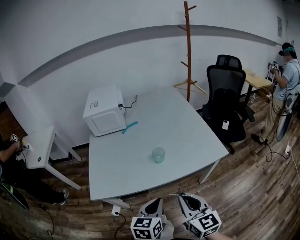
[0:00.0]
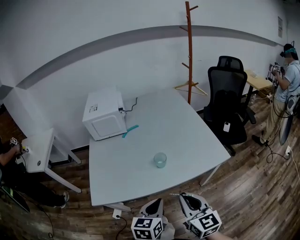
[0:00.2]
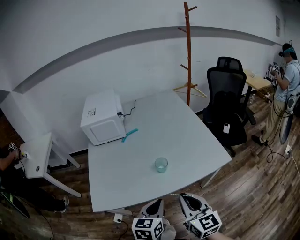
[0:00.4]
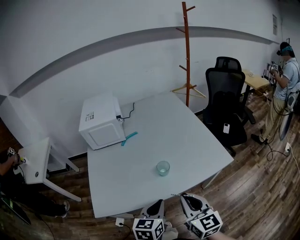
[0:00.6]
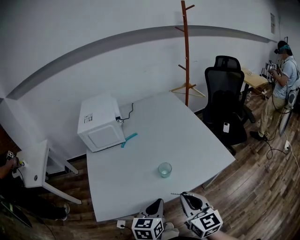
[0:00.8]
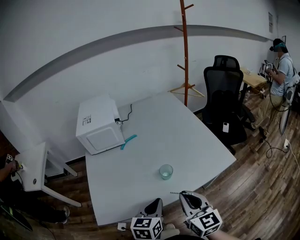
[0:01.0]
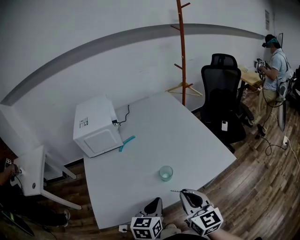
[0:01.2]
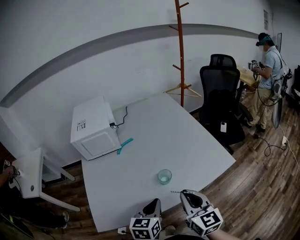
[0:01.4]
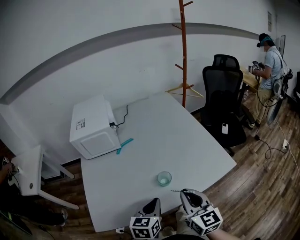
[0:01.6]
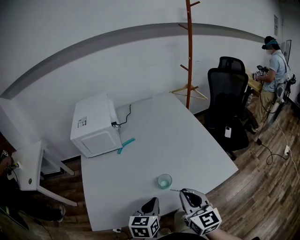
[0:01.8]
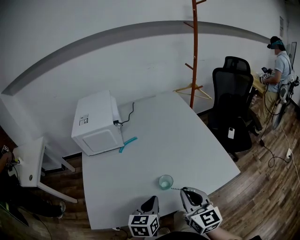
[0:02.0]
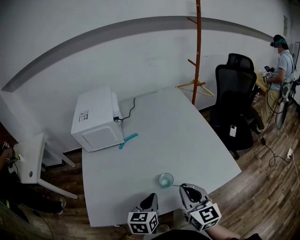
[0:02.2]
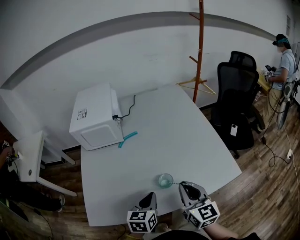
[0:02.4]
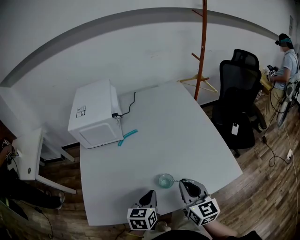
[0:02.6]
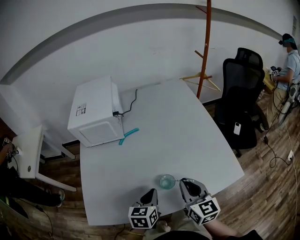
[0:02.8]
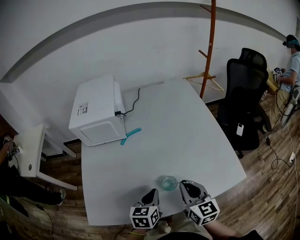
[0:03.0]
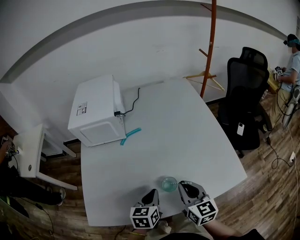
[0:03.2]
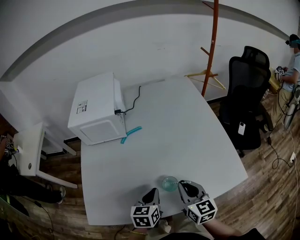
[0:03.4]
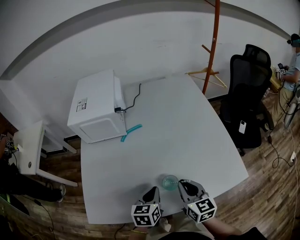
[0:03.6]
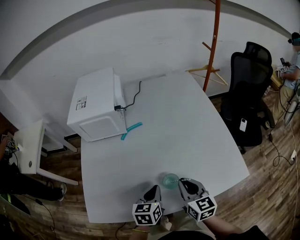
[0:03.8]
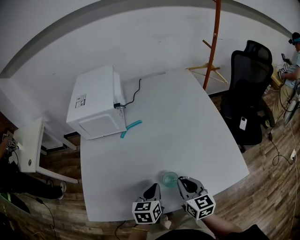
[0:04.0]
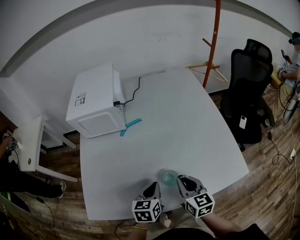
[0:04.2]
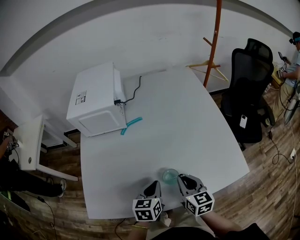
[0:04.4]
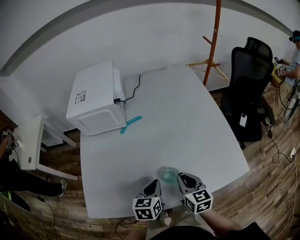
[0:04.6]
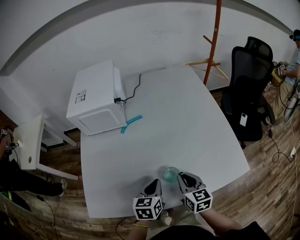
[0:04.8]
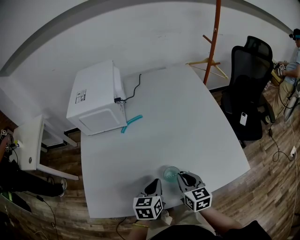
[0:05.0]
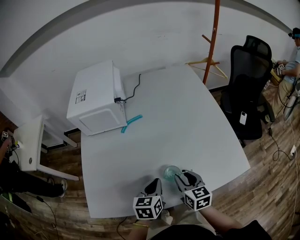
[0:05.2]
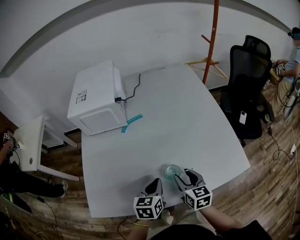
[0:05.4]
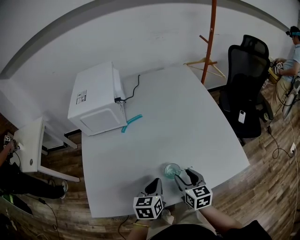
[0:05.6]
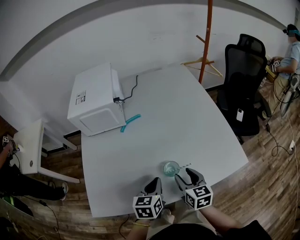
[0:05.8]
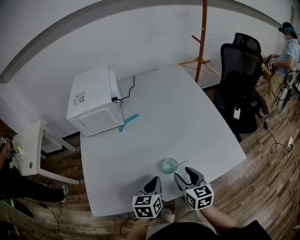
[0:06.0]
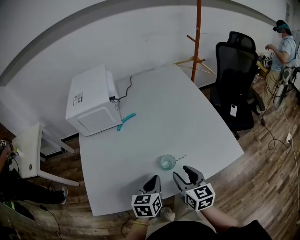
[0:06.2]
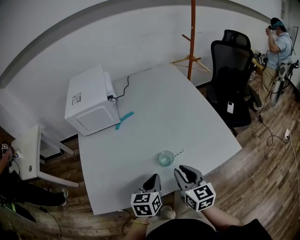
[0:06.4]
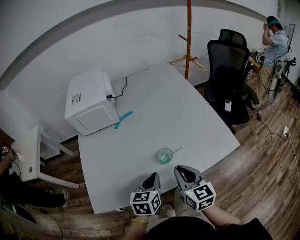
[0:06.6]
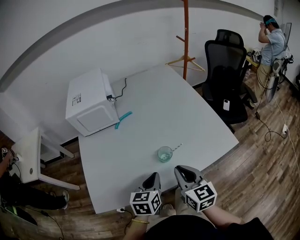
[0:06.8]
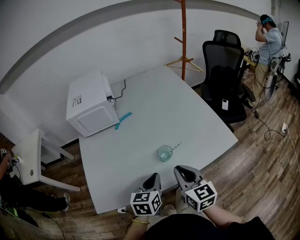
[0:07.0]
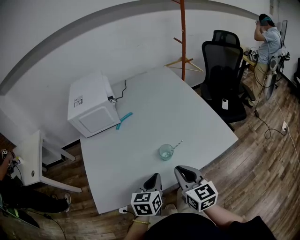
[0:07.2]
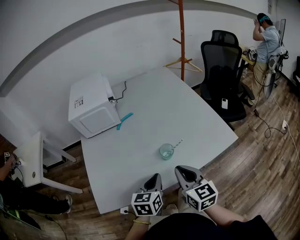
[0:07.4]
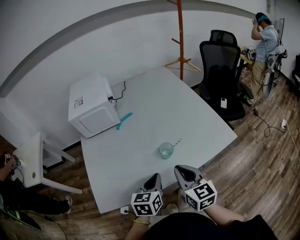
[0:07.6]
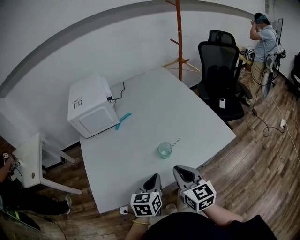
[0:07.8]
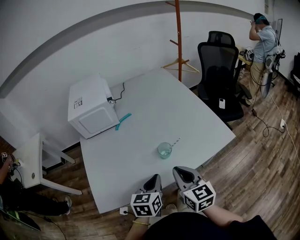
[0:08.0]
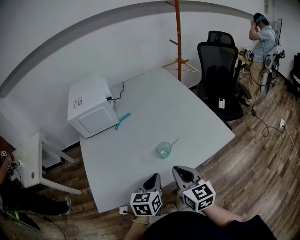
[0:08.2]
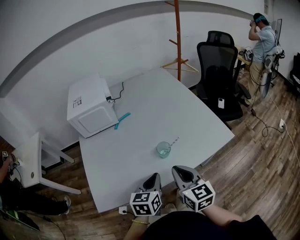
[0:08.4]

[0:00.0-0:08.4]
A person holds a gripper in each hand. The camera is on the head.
0:00.0 to 0:01.4: The left gripper shifts about 15 cm forward and to the left; the right gripper shifts some 15 cm forward.
0:01.4 to 0:02.8: The left gripper heads forward and downward, covering approximately 10 cm; the right gripper moves forward, some 15 cm.
0:02.8 to 0:04.2: The right gripper shifts about 10 cm downward.
0:04.2 to 0:05.6: The right gripper opens its fingers.
0:05.6 to 0:07.0: The left gripper shifts about 10 cm backward. The right gripper moves upward and backward, approximately 15 cm, and closes its fingers.
0:07.0 to 0:08.4: There are only small adjustments of the grippers.

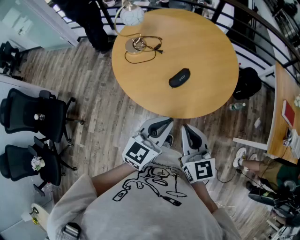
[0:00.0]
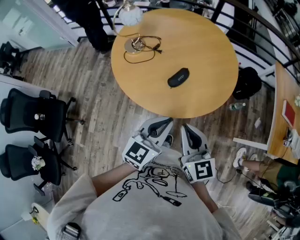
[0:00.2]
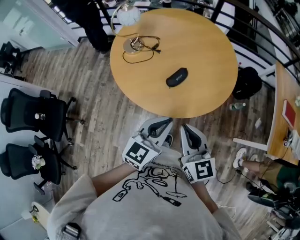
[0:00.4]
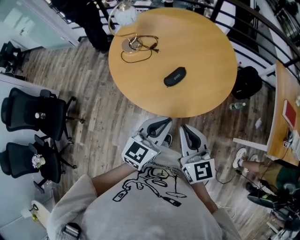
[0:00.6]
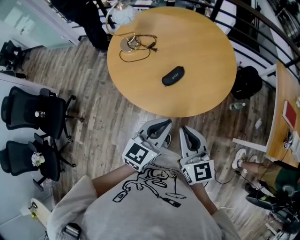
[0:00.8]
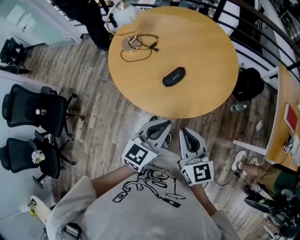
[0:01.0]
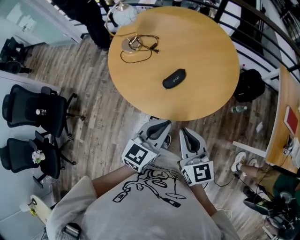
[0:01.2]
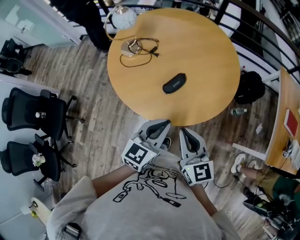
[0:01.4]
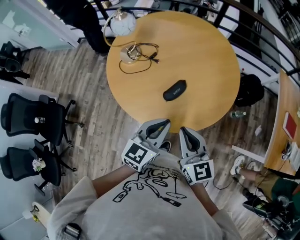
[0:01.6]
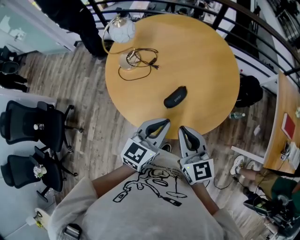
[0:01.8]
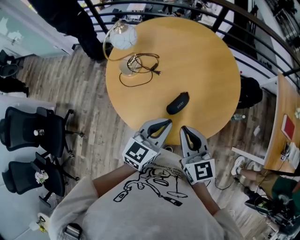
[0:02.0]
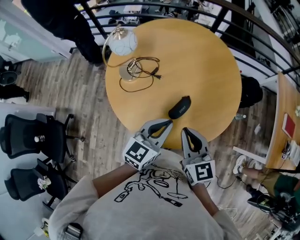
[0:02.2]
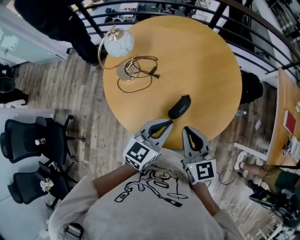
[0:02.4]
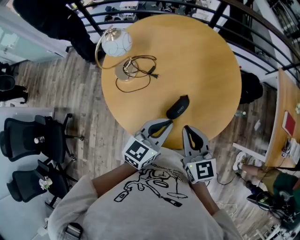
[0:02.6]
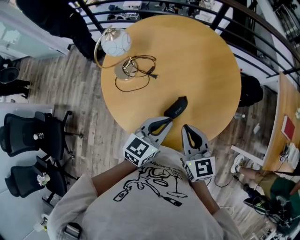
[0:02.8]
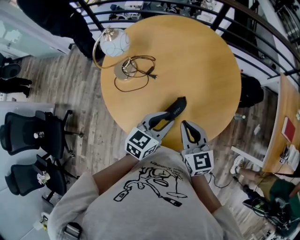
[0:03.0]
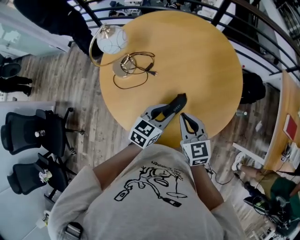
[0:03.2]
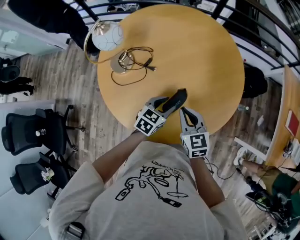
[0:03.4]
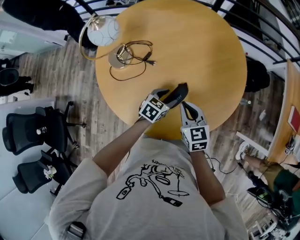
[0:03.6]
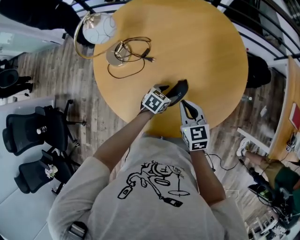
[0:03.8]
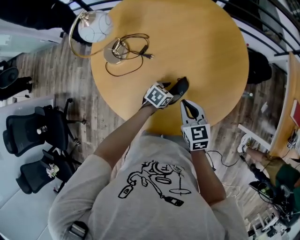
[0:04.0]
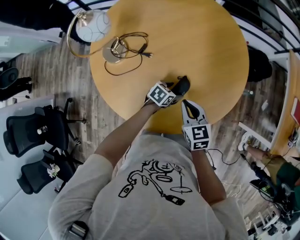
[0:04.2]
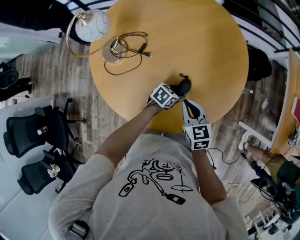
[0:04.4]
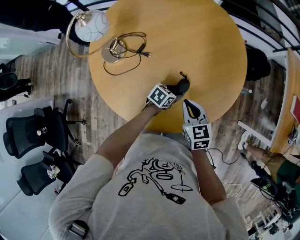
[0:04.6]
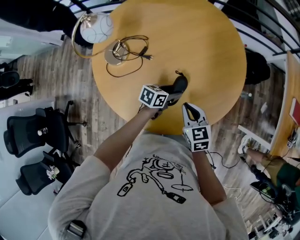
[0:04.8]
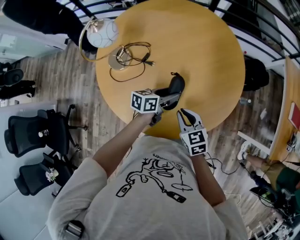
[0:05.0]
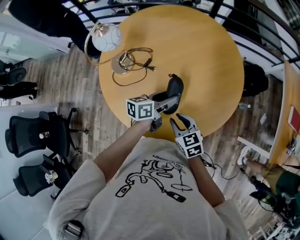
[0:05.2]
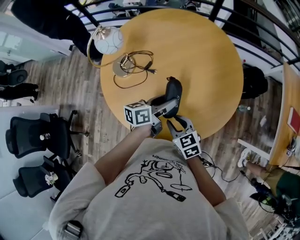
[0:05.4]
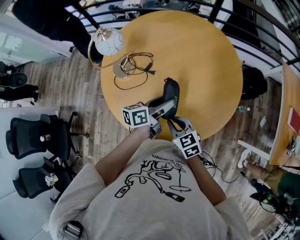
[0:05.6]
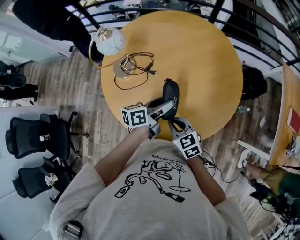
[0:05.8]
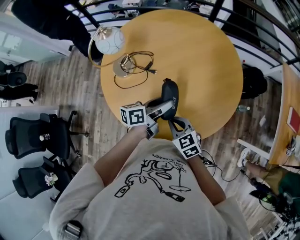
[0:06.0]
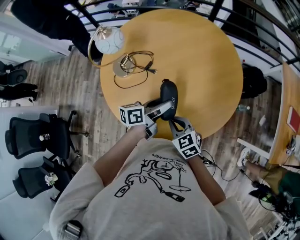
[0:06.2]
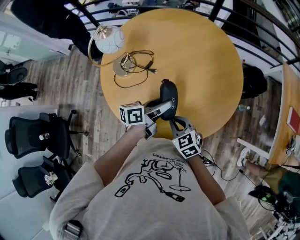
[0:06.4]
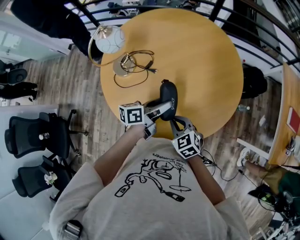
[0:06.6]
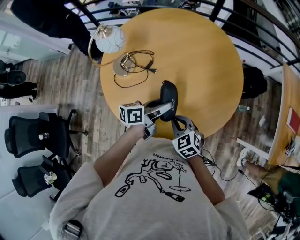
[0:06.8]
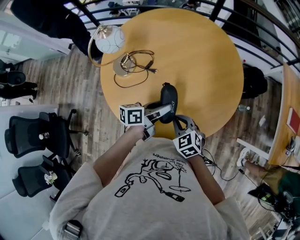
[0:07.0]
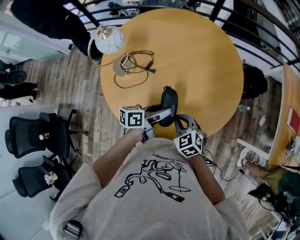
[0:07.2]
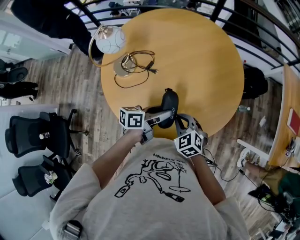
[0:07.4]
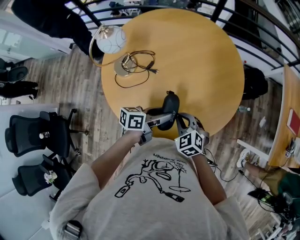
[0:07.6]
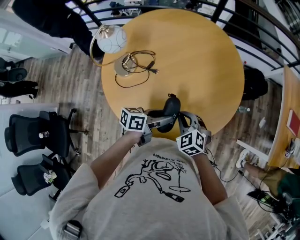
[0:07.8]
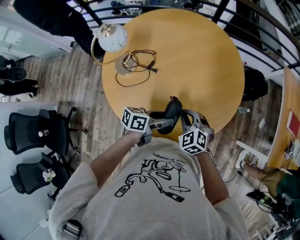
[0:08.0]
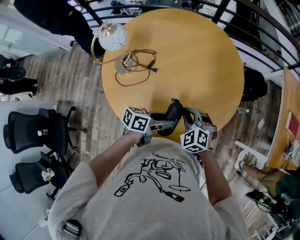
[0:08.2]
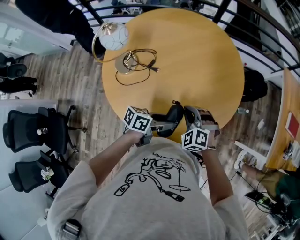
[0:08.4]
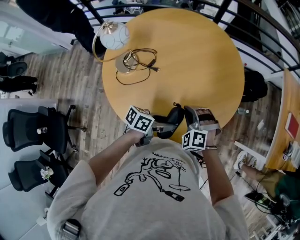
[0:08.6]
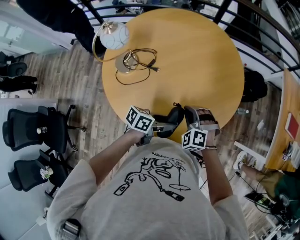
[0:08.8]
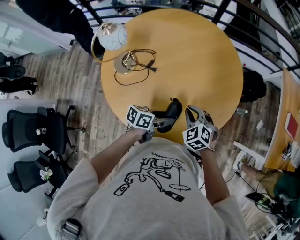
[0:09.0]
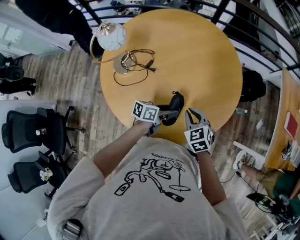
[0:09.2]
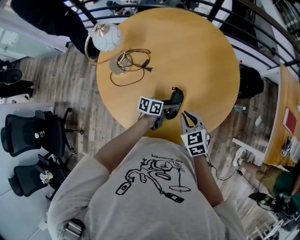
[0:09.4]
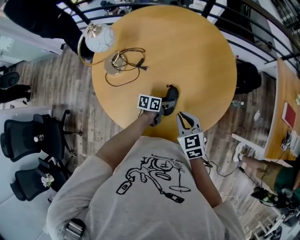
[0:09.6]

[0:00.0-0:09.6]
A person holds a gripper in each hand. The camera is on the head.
0:00.0 to 0:01.6: Both grippers move forward, about 10 cm.
0:01.6 to 0:03.2: Both grippers travel together forward and downward, approximately 20 cm. The left gripper opens up.
0:03.2 to 0:04.8: The left gripper moves downward, approximately 15 cm, and swivels about 30 degrees. Meanwhile the right gripper shifts some 10 cm downward.
0:04.8 to 0:06.4: The right gripper shifts approximately 5 cm to the left. Meanwhile the left gripper shifts roughly 15 cm upward and to the left, and swivels about 30 degrees.
0:06.4 to 0:08.0: The right gripper moves about 5 cm, and swivels approximately 30 degrees; the left gripper shifts some 5 cm backward.
0:08.0 to 0:09.6: The right gripper turns by about 30 degrees. The left gripper goes roughly 20 cm downward and forward.

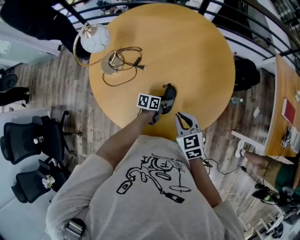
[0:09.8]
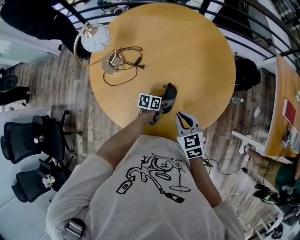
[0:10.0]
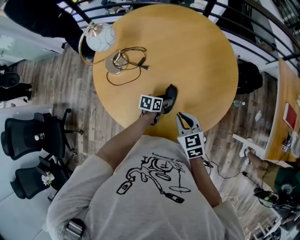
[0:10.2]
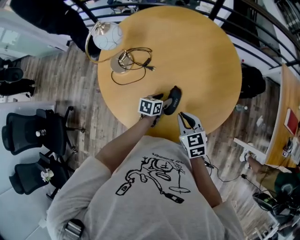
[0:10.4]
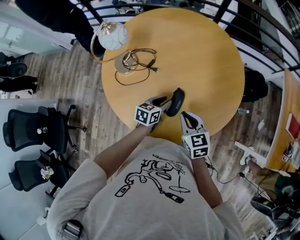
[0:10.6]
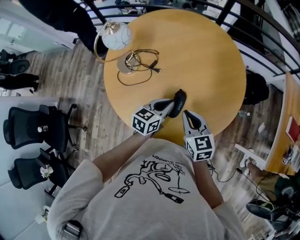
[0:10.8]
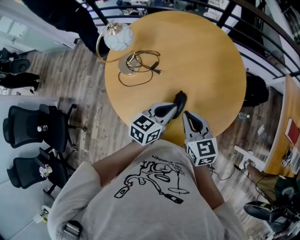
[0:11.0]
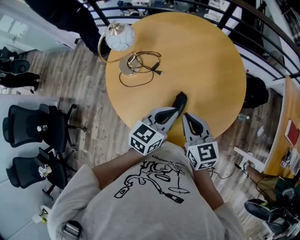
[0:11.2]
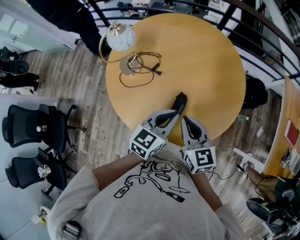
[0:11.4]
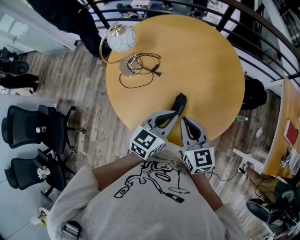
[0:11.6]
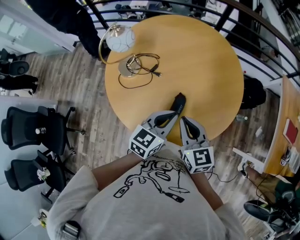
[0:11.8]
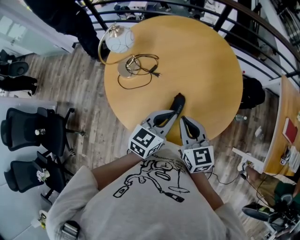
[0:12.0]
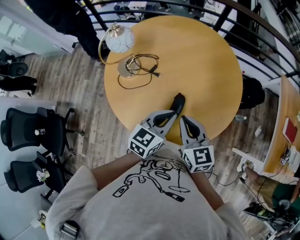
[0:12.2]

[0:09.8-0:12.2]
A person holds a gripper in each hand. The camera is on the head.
0:09.8 to 0:11.0: The right gripper goes roughly 10 cm upward. Meanwhile the left gripper travels upward by approximately 25 cm, changes its angle by about 40 degrees, and closes its fingers.
0:11.0 to 0:12.2: The grippers move only a little.

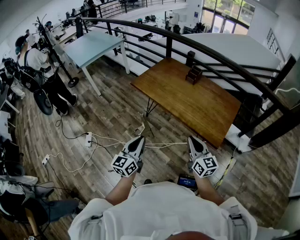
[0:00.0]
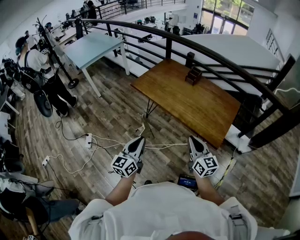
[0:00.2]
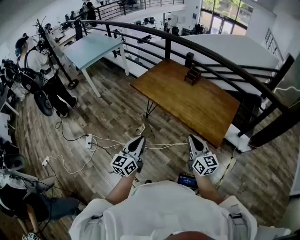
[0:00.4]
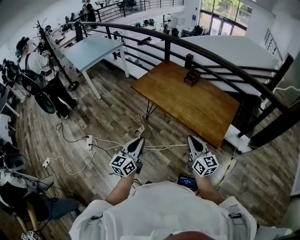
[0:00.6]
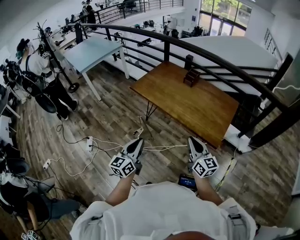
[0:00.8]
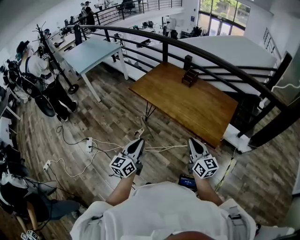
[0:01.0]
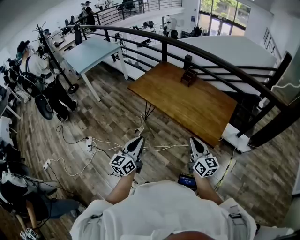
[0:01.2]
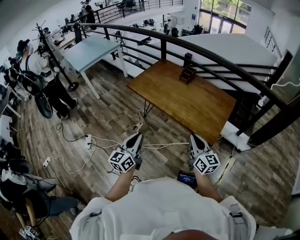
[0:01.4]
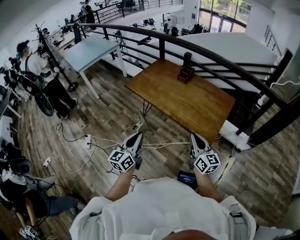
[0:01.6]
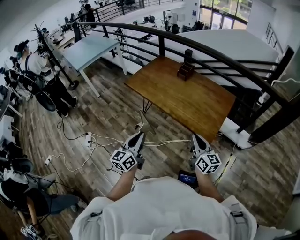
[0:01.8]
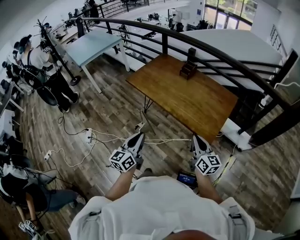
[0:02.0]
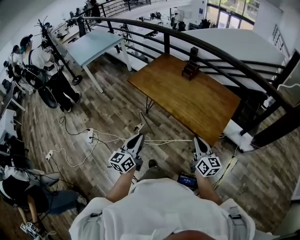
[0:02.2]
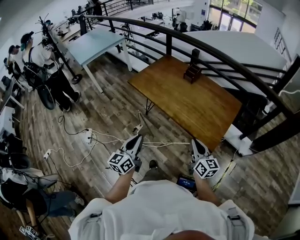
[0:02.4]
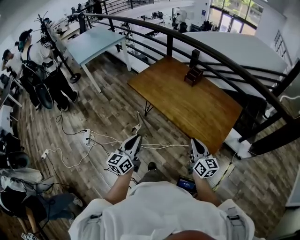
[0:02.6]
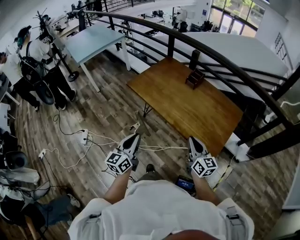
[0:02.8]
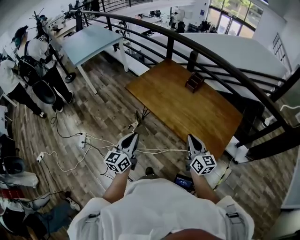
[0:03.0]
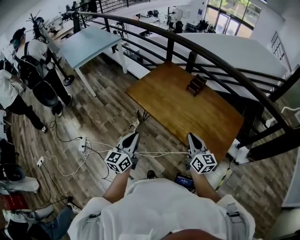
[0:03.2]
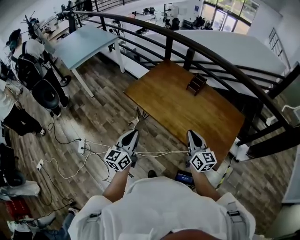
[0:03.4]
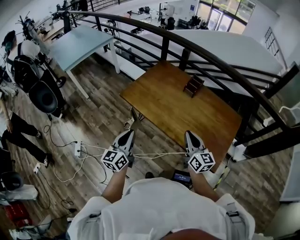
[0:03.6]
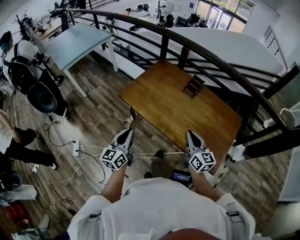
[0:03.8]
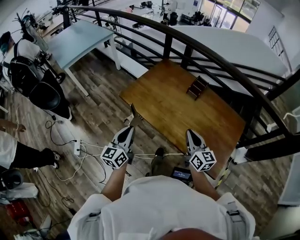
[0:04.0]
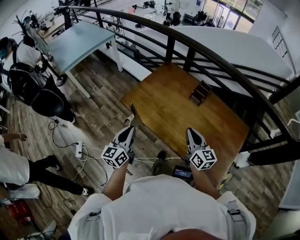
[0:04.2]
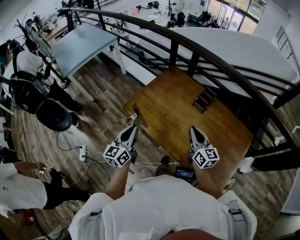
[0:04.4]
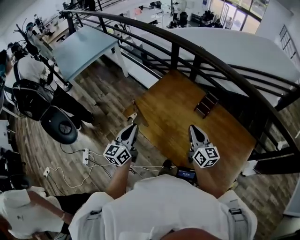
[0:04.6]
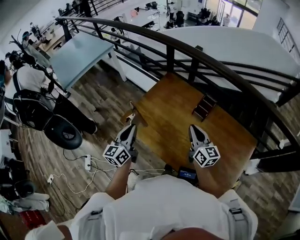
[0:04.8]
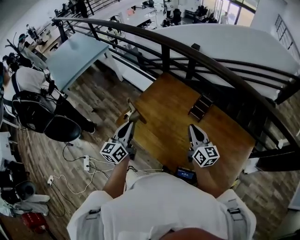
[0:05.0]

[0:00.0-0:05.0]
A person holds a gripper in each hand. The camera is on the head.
0:00.0 to 0:01.6: Both grippers move to the right, roughly 10 cm.
0:01.6 to 0:03.4: The grippers both shift forward by roughly 25 cm.
0:03.4 to 0:05.0: The two grippers go roughly 35 cm forward.
